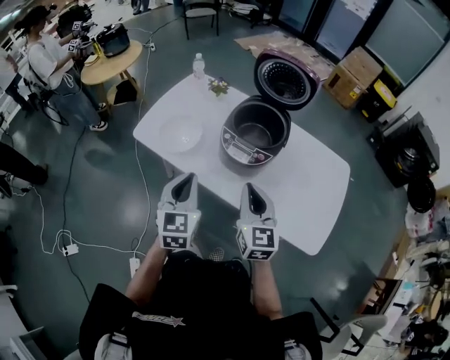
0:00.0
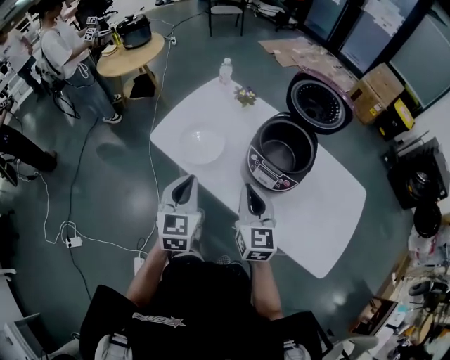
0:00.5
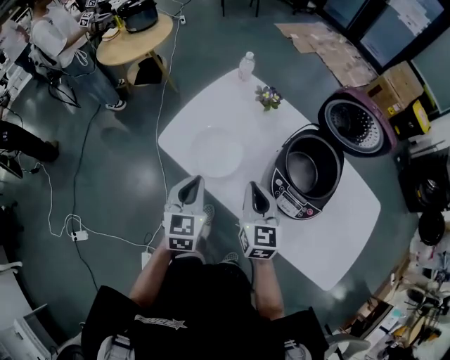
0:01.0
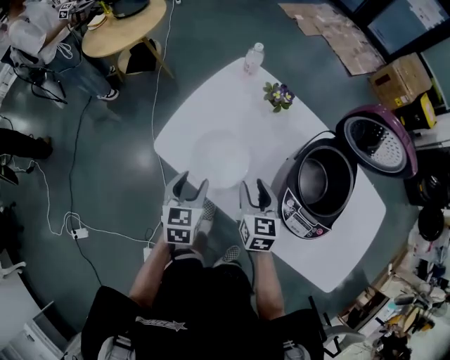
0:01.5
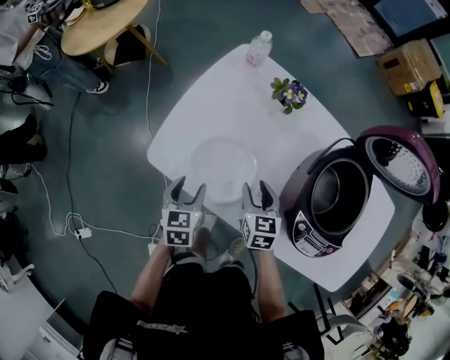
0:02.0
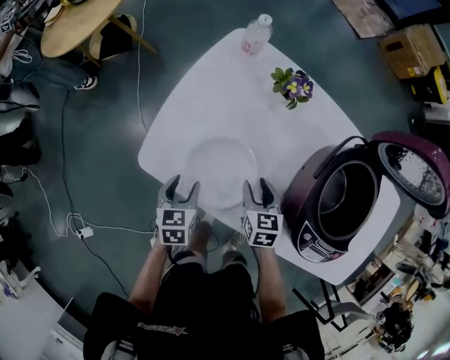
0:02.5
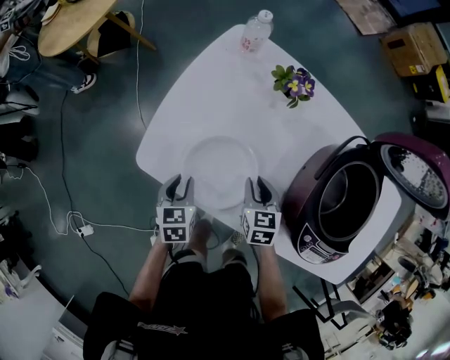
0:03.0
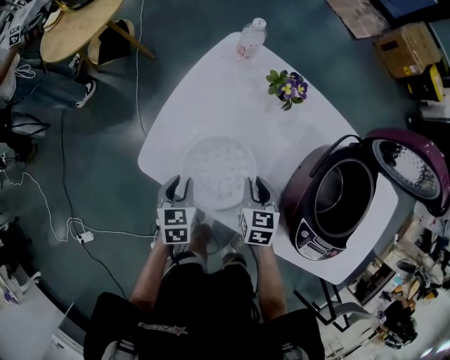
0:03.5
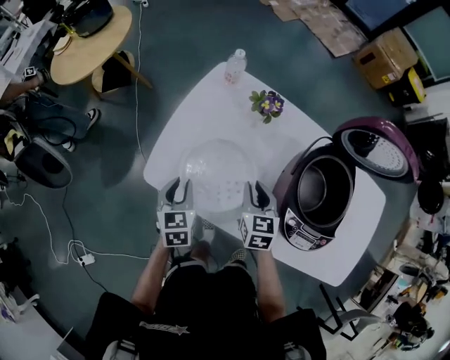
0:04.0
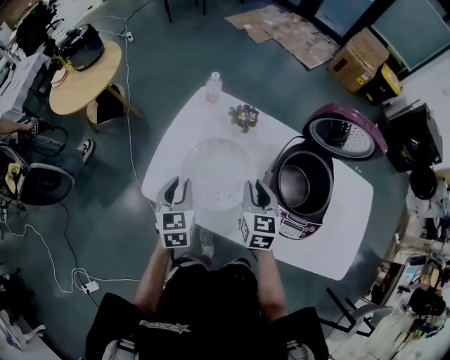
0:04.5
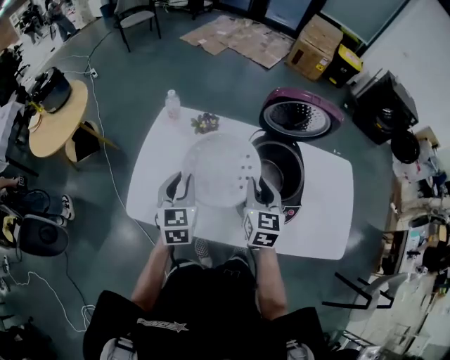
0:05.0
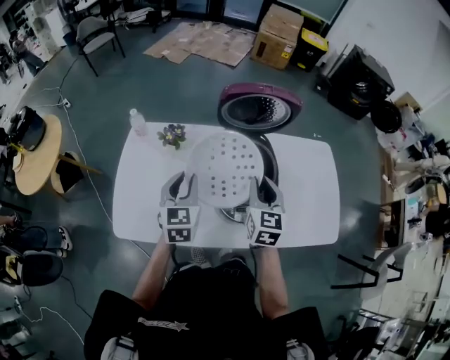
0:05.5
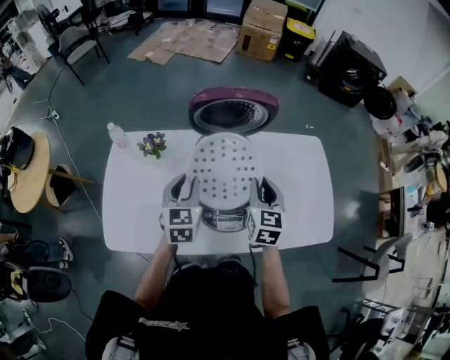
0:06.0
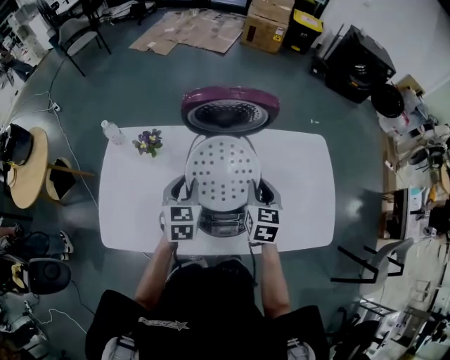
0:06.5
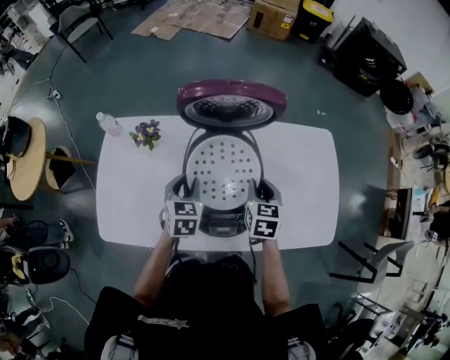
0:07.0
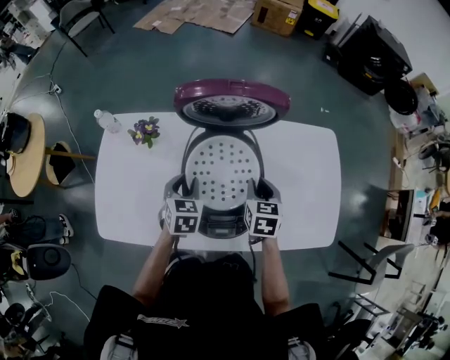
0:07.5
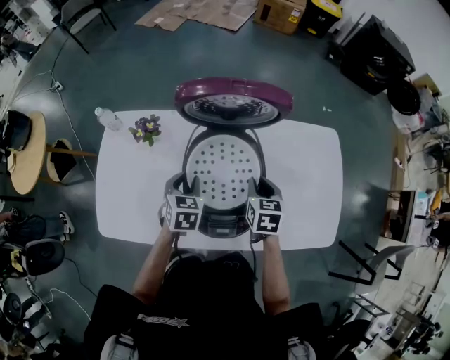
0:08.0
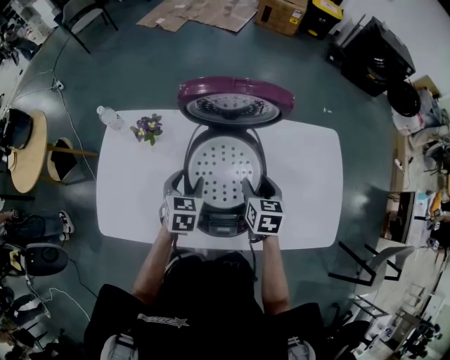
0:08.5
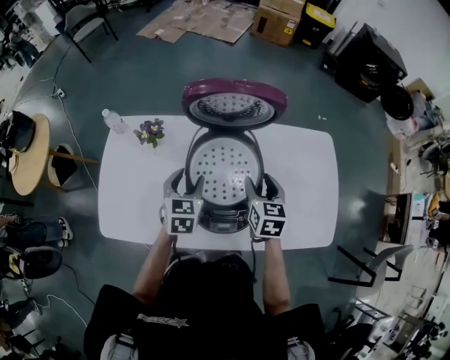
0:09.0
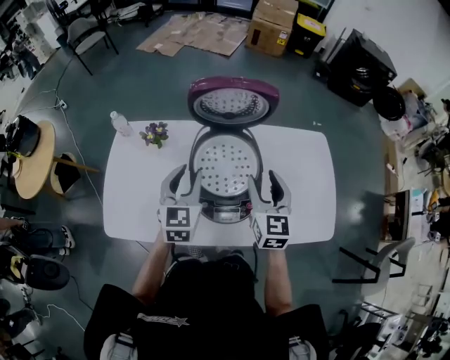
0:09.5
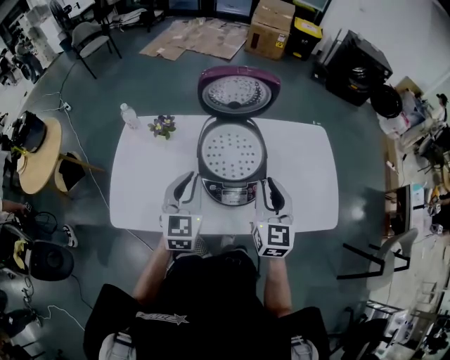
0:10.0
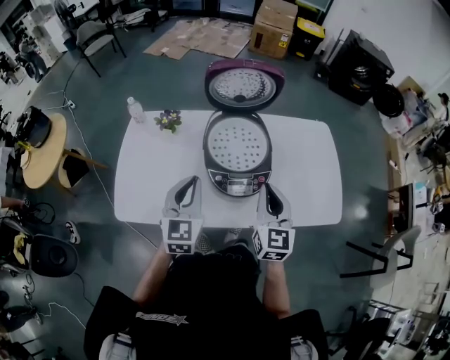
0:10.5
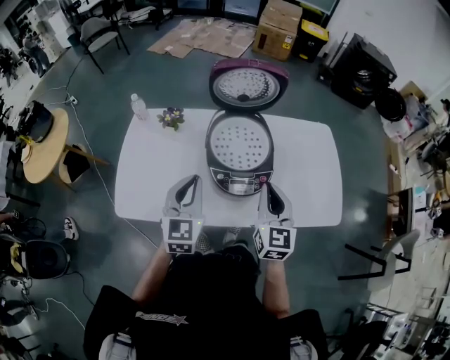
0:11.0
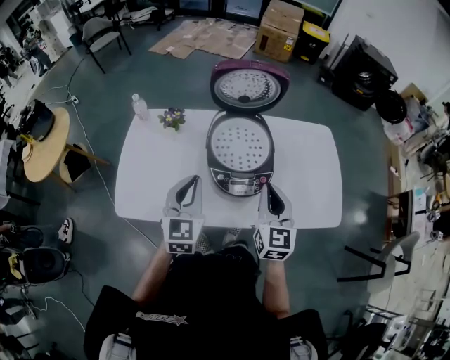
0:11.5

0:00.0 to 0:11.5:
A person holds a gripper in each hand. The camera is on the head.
0:00.0 to 0:02.0: The two grippers go some 40 cm forward, downward and to the left. The left gripper swivels about 30 degrees, and opens its fingers. Meanwhile the right gripper tilts its fingers roughly 30 degrees downward, and opens.
0:02.0 to 0:04.0: The right gripper heads upward, covering some 5 cm, and closes its fingers, while the left gripper moves some 5 cm, and closes its fingers.
0:04.0 to 0:06.0: The right gripper moves roughly 35 cm, and rotates roughly 40 degrees. The left gripper changes place by roughly 35 cm, and swivels approximately 40 degrees.
0:06.0 to 0:07.5: Both grippers move downward, some 10 cm. The left gripper changes its angle by some 20 degrees, while the right gripper rotates about 20 degrees.
0:07.5 to 0:09.5: Both grippers travel together upward, about 15 cm. The right gripper turns by approximately 30 degrees, and opens; the left gripper turns by some 30 degrees.
0:09.5 to 0:11.5: The two grippers go approximately 10 cm backward. The left gripper closes its fingers, while the right gripper closes.

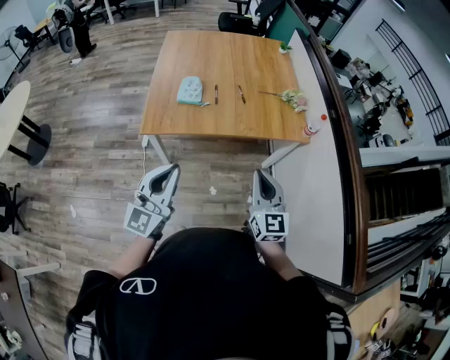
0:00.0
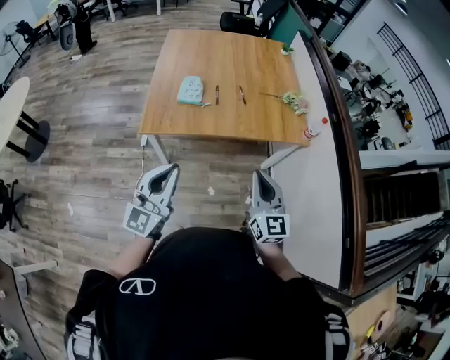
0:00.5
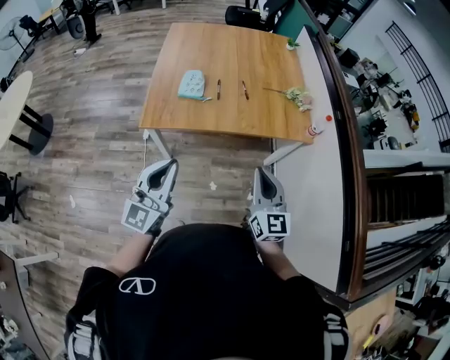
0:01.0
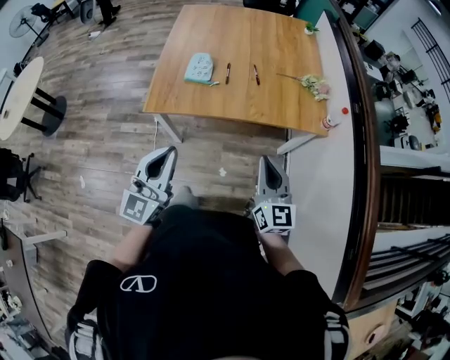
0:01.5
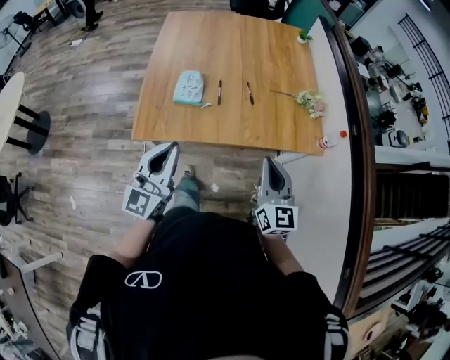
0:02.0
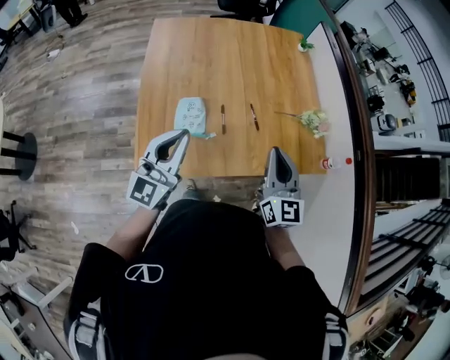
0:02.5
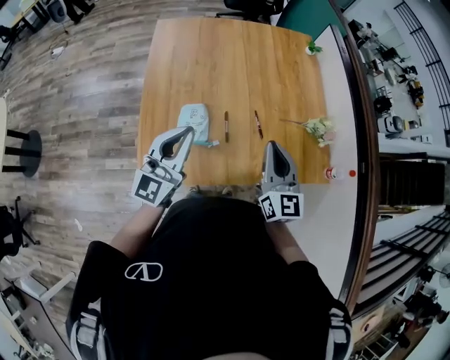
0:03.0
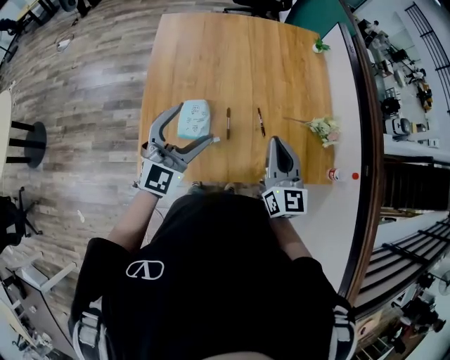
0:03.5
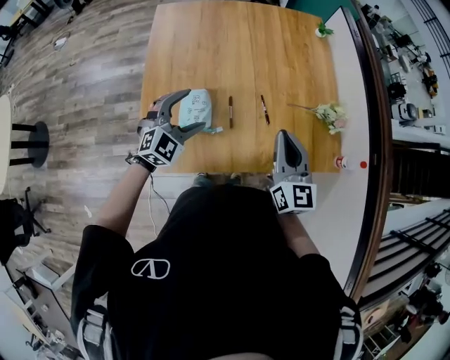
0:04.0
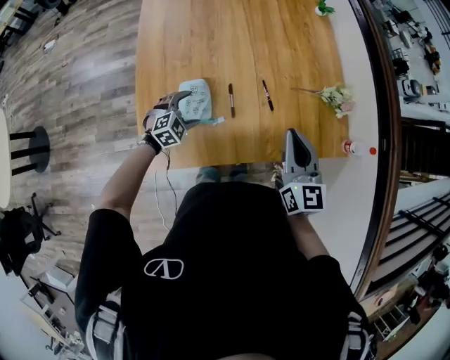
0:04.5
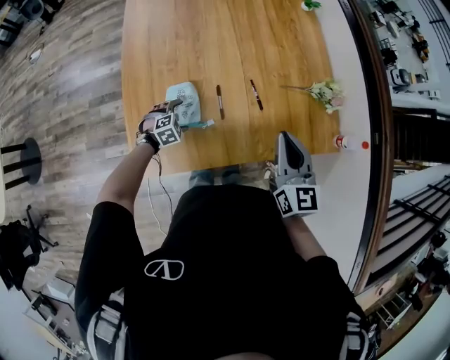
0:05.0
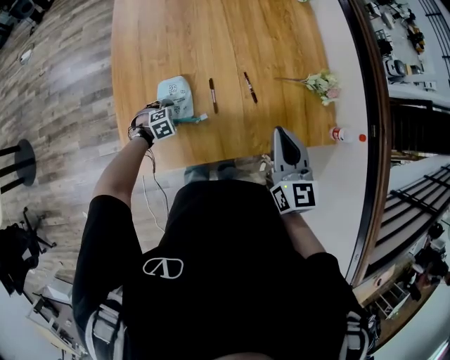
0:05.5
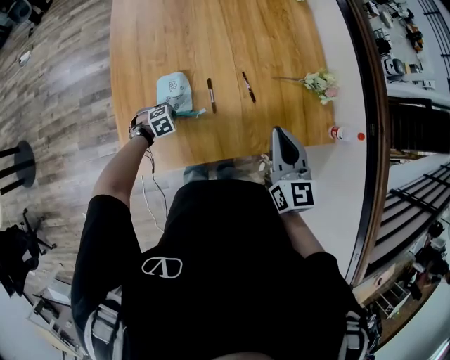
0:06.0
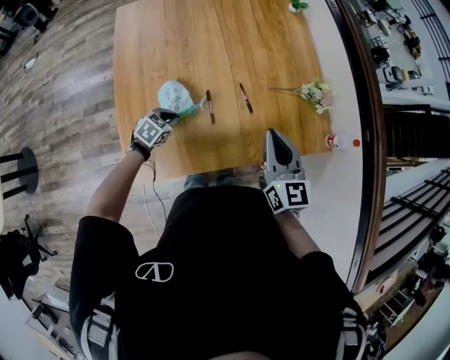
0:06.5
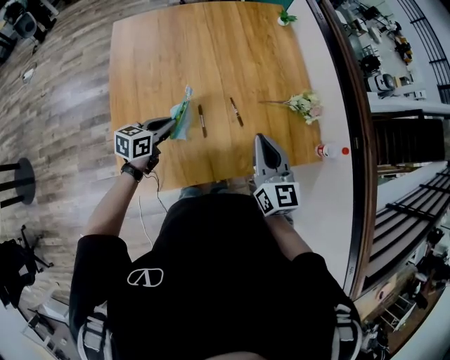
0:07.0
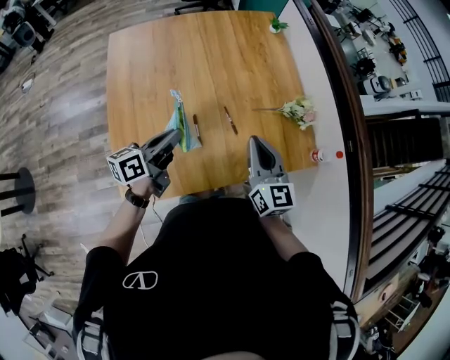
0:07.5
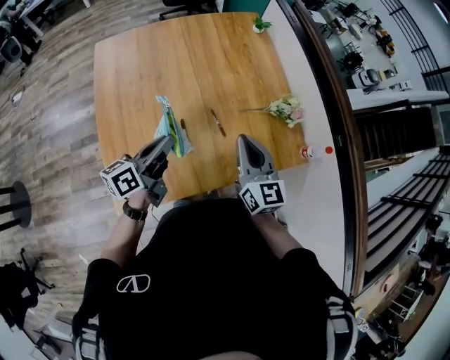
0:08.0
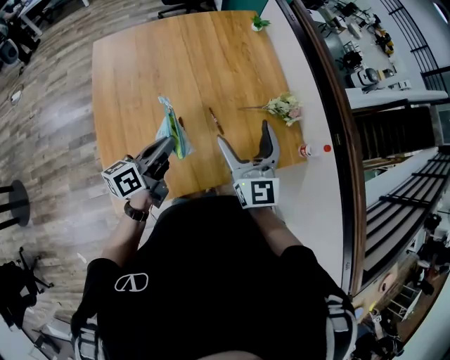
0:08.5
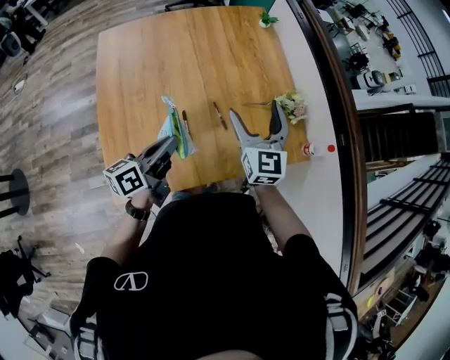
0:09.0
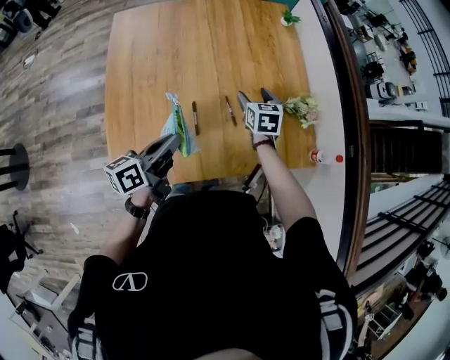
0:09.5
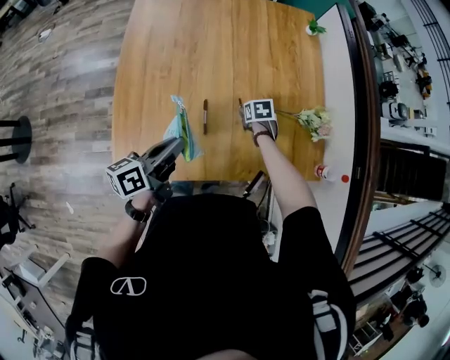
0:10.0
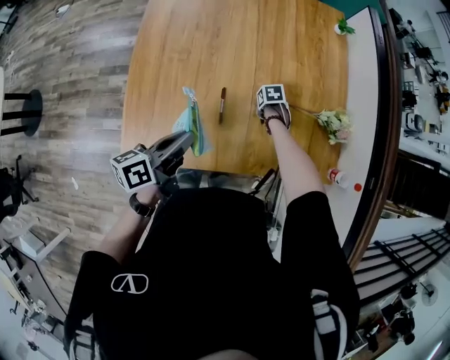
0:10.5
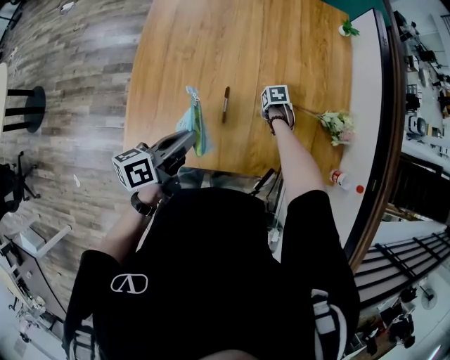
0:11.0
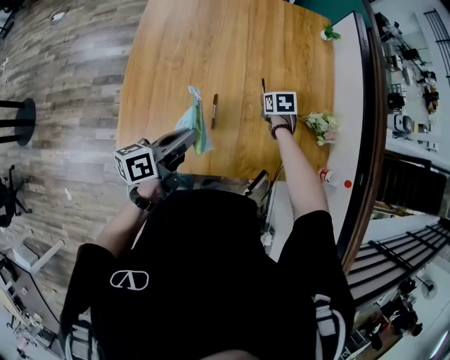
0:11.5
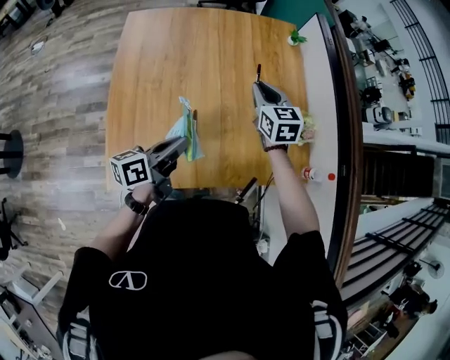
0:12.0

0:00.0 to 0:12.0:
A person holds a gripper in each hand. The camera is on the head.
0:00.0 to 0:02.0: The grippers both shift forward by some 20 cm.
0:02.0 to 0:04.0: The two grippers go roughly 35 cm forward. The left gripper tilts its fingers about 40 degrees downward, and opens up.
0:04.0 to 0:06.0: The right gripper shifts by approximately 5 cm. Meanwhile the left gripper shifts approximately 30 cm downward, angles its fingers downward, by roughly 50 degrees, and closes its fingers.
0:06.0 to 0:08.0: The left gripper shifts about 35 cm upward, and tilts its fingers roughly 70 degrees upward, while the right gripper shifts by about 5 cm.
0:08.0 to 0:10.0: The left gripper shifts approximately 5 cm downward; the right gripper heads downward and forward, covering about 35 cm, angles its fingers downward, by approximately 60 degrees, and opens.
0:10.0 to 0:12.0: The right gripper moves upward, about 30 cm, tips its fingers upward by some 40 degrees, and closes up.

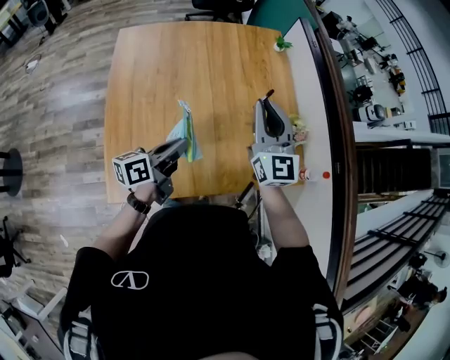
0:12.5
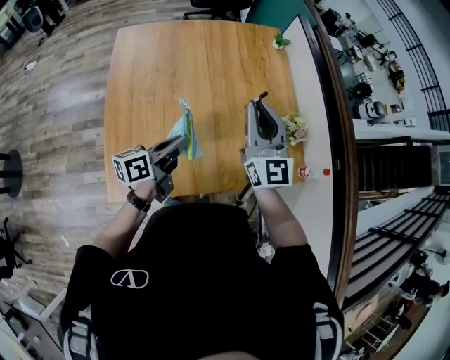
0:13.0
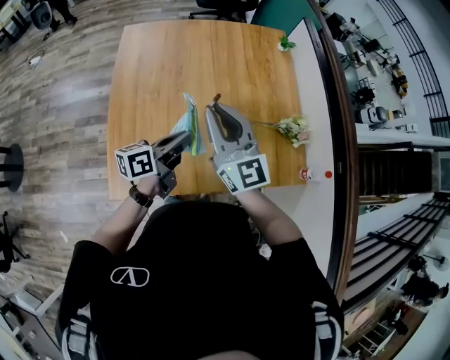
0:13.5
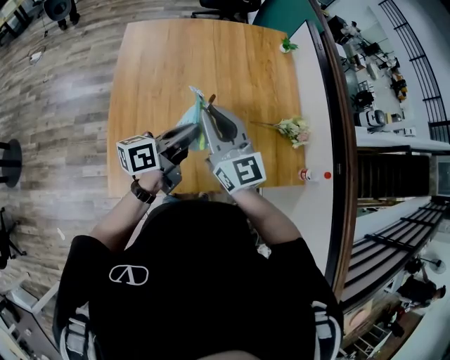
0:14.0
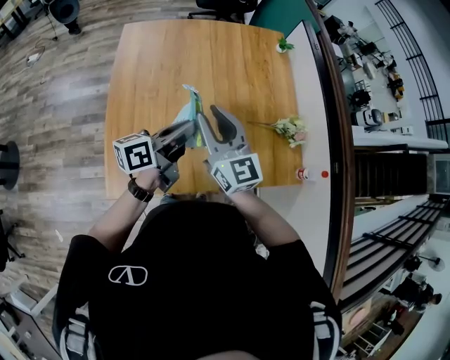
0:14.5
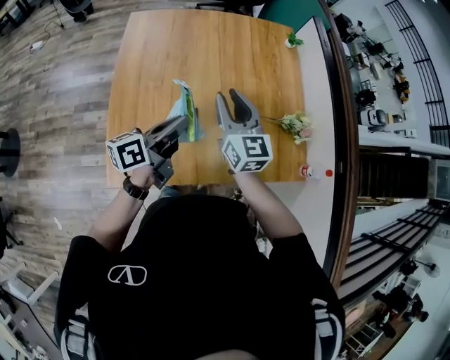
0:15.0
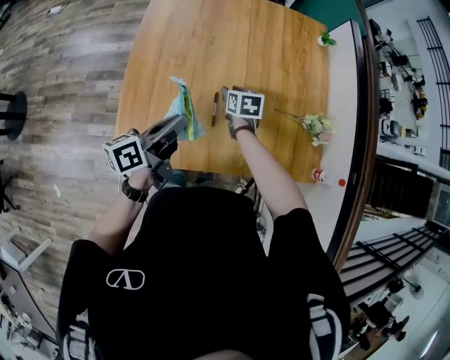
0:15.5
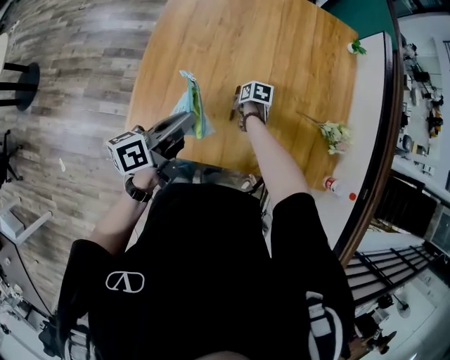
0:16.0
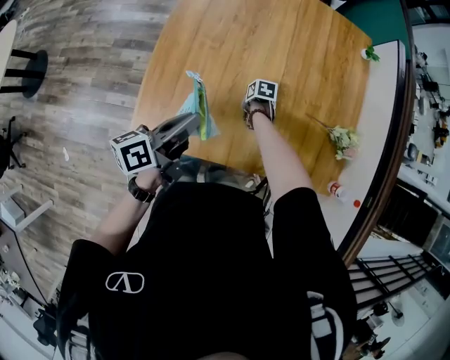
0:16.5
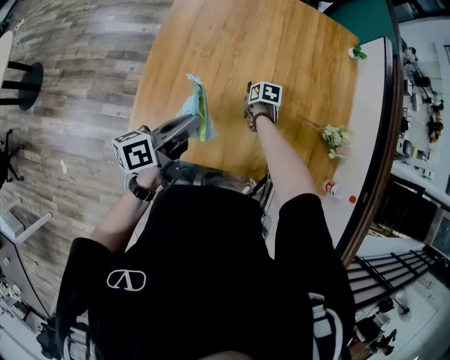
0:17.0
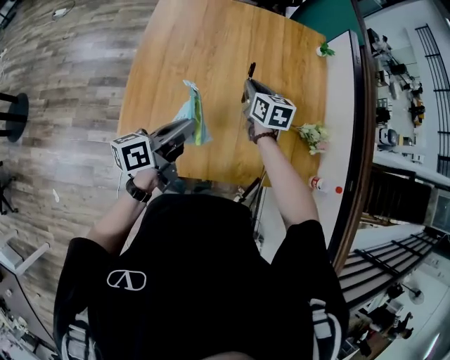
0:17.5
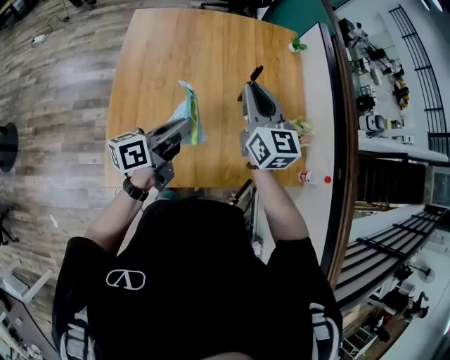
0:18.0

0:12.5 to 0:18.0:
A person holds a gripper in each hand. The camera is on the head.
0:12.5 to 0:14.5: The left gripper is displaced upward by some 5 cm. Meanwhile the right gripper goes some 15 cm to the left and backward, and changes its angle by about 20 degrees.
0:14.5 to 0:16.0: The right gripper shifts roughly 40 cm downward, and tips its fingers downward by some 70 degrees. Meanwhile the left gripper travels to the left and downward by approximately 15 cm, and changes its angle by some 20 degrees.
0:16.0 to 0:18.0: The left gripper changes place by roughly 10 cm. Meanwhile the right gripper travels upward by about 40 cm, and angles its fingers upward, by approximately 60 degrees.
